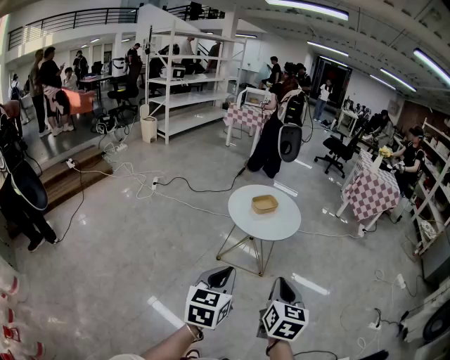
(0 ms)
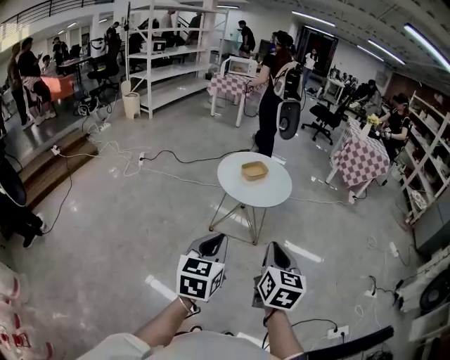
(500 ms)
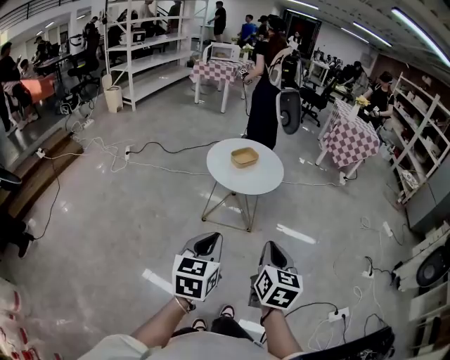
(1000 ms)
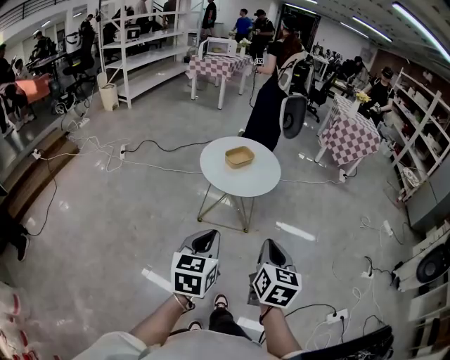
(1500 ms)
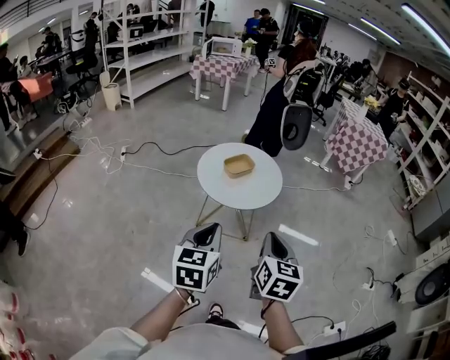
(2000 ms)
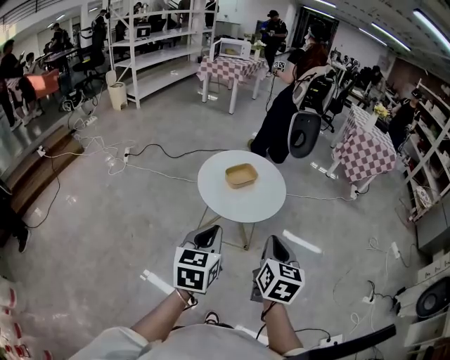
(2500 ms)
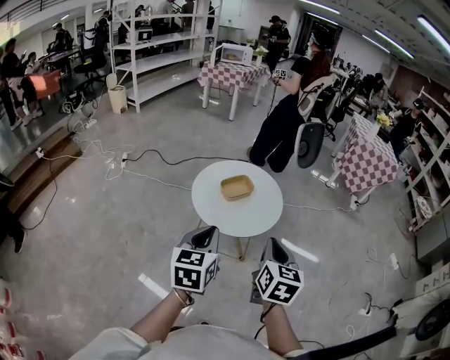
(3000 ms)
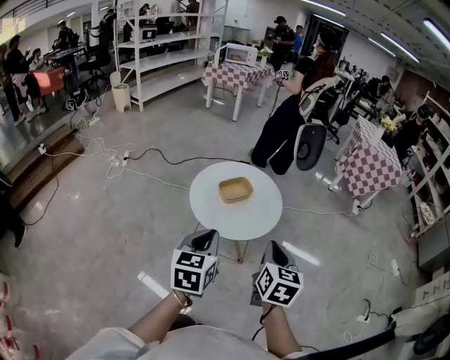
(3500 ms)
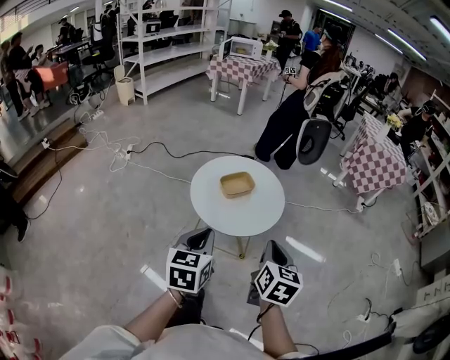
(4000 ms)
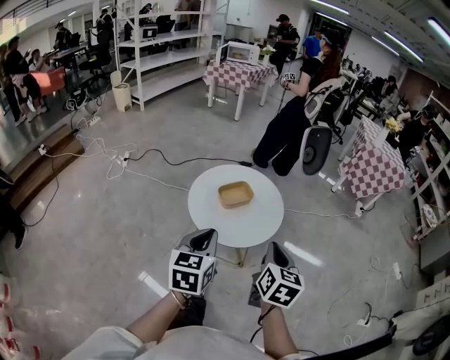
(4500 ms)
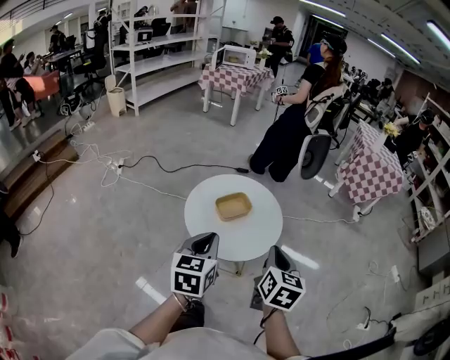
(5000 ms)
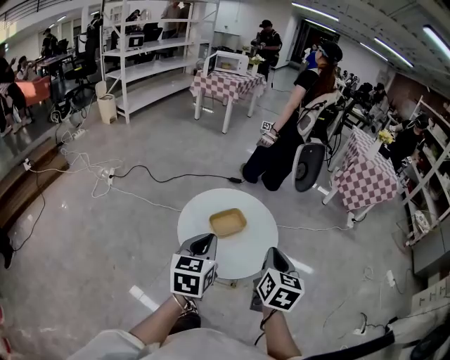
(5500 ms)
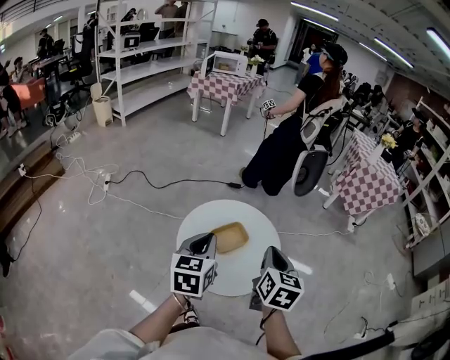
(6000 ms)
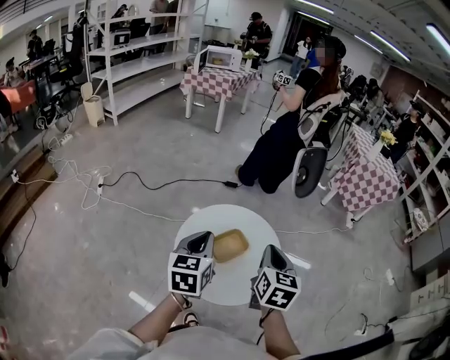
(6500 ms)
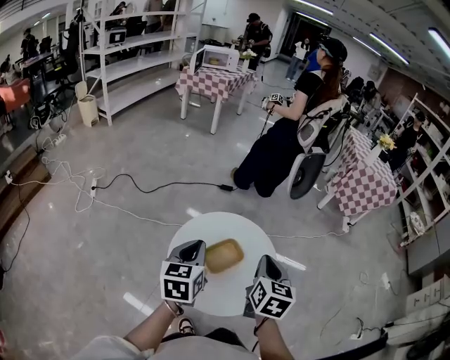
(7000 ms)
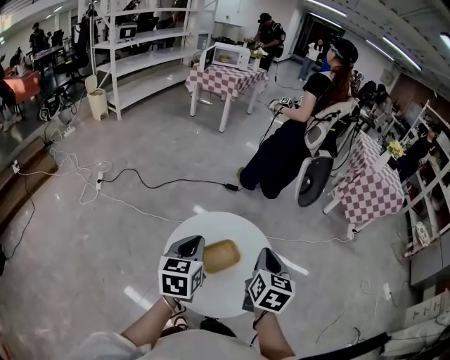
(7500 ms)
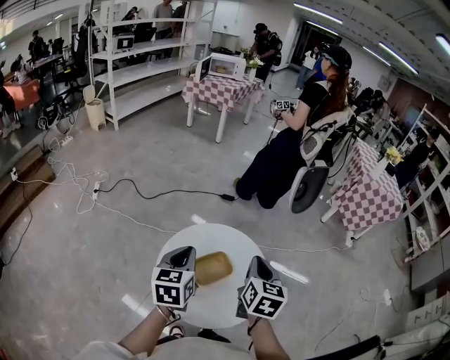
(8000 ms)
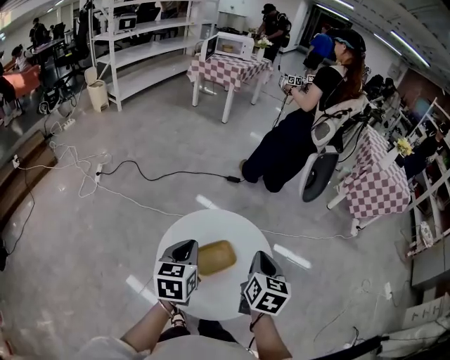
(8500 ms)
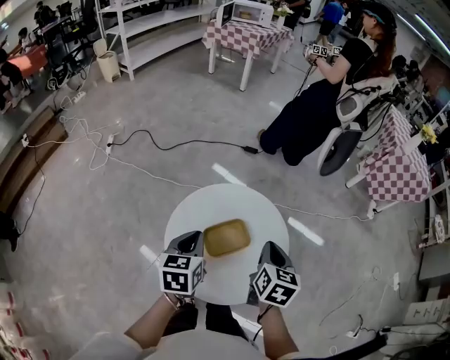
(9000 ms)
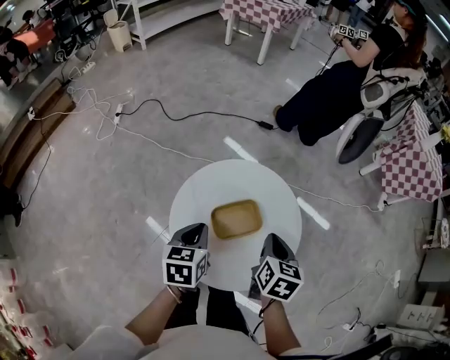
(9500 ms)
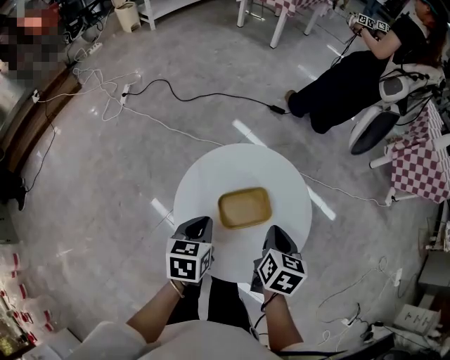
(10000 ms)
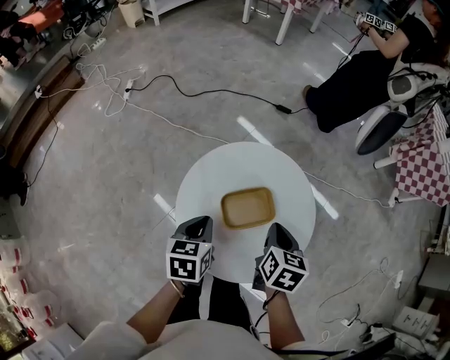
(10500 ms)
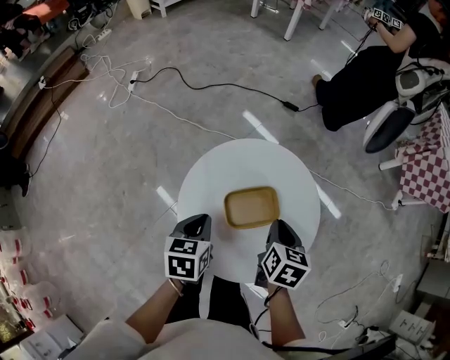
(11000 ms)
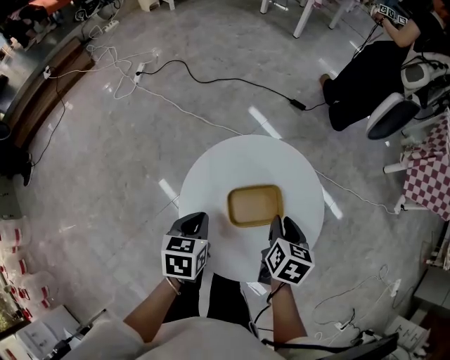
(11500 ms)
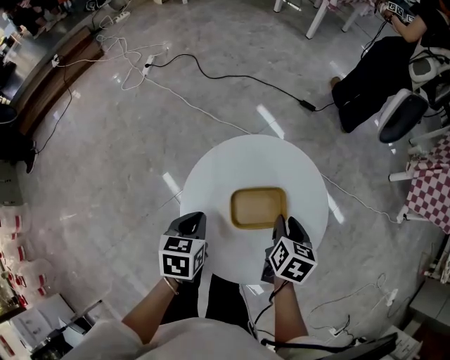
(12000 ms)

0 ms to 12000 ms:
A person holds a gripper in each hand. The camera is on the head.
0 ms to 2000 ms: The grippers both shift forward by roughly 15 cm.
2000 ms to 4000 ms: Both grippers move forward, roughly 15 cm.
4000 ms to 6000 ms: Both grippers travel together forward, about 20 cm.
6000 ms to 8000 ms: The grippers both shift forward by some 10 cm.
8000 ms to 10000 ms: The right gripper moves downward, some 15 cm, and changes its angle by roughly 20 degrees, while the left gripper moves downward and backward, some 20 cm, and turns by some 20 degrees.
10000 ms to 12000 ms: The left gripper changes place by approximately 5 cm; the right gripper is displaced downward by about 5 cm, and opens.

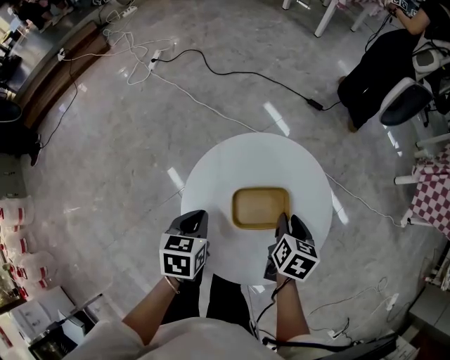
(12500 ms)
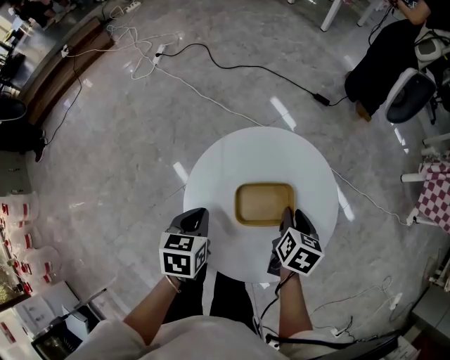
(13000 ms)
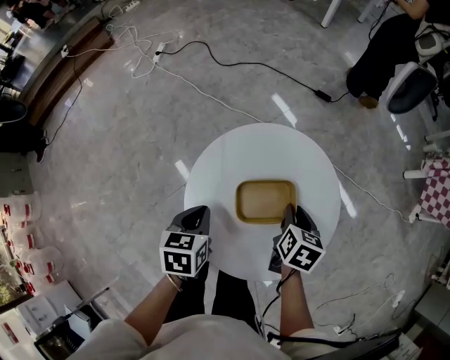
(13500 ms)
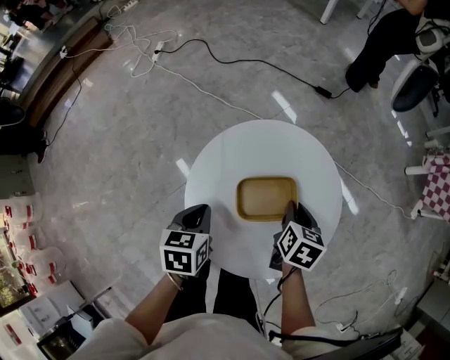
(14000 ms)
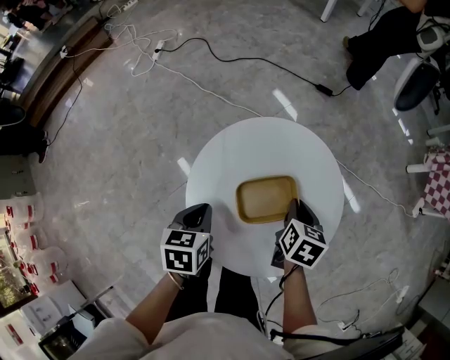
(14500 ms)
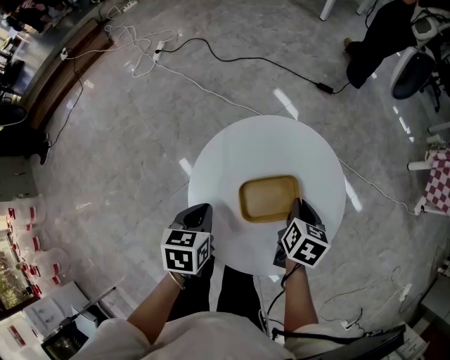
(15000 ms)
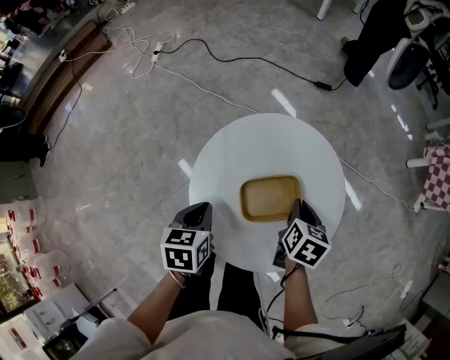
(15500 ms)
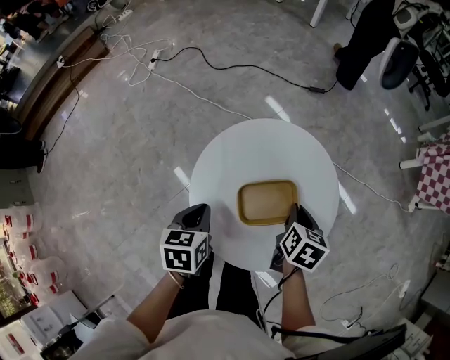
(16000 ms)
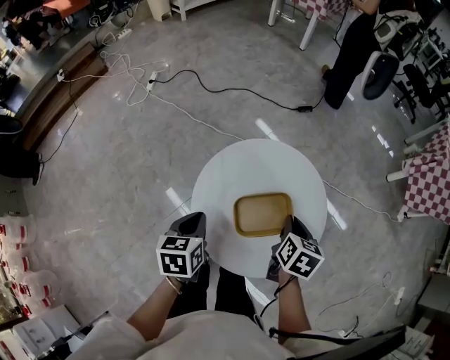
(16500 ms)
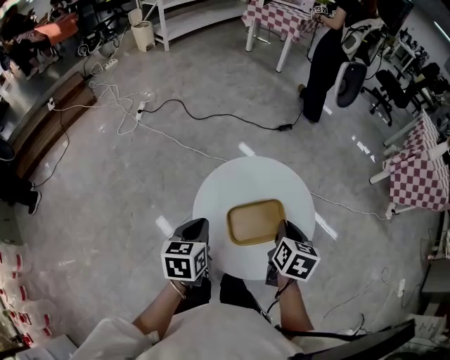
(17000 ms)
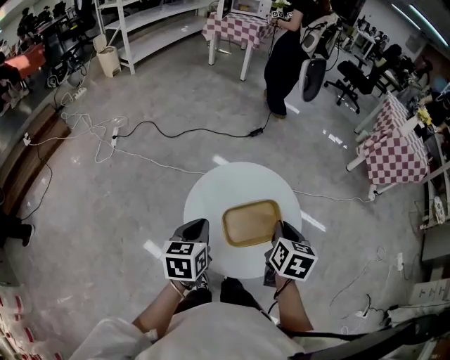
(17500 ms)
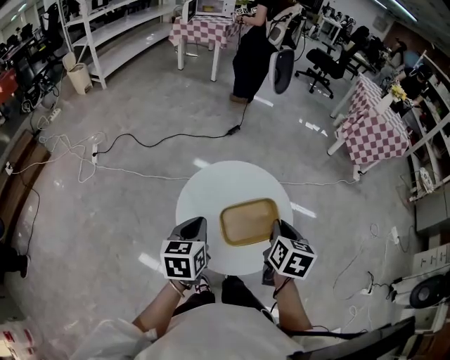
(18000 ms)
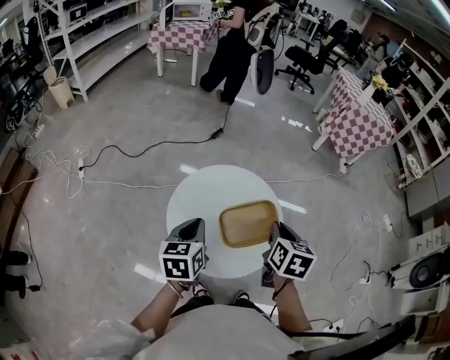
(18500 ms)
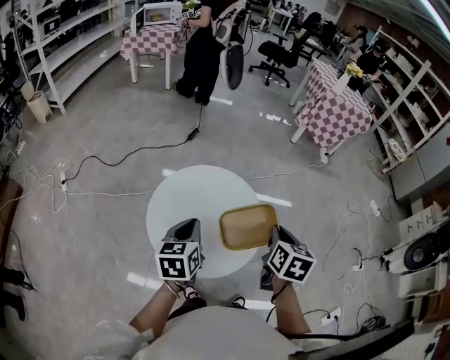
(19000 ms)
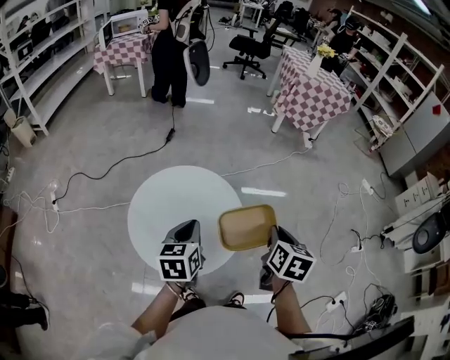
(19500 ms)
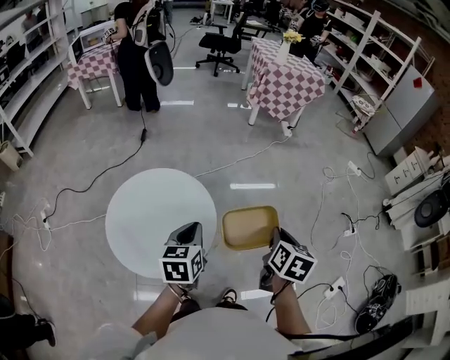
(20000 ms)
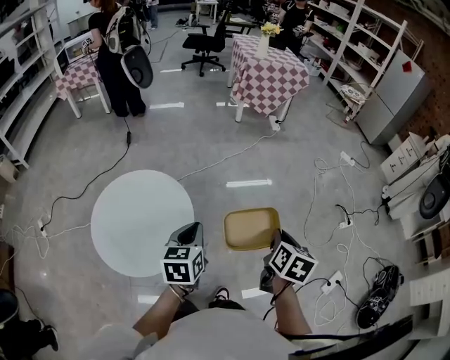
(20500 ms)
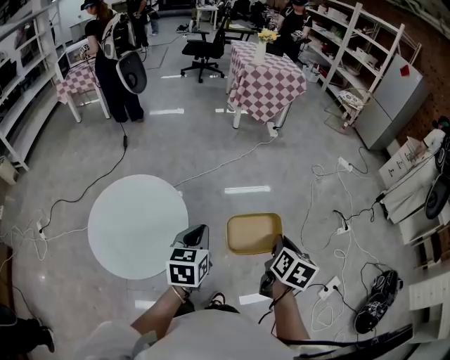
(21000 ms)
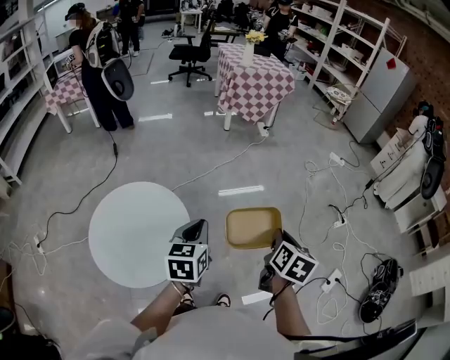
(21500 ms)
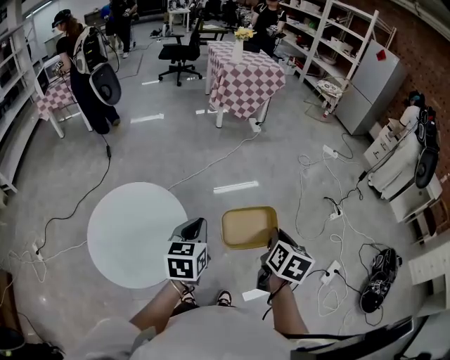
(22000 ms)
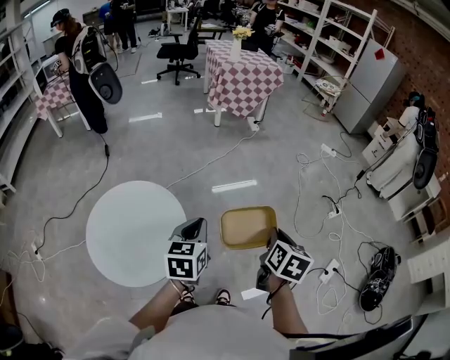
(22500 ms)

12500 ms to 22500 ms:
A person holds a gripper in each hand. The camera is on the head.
12500 ms to 14500 ms: The grippers move only a little.
14500 ms to 16500 ms: The right gripper travels upward by roughly 5 cm. The left gripper moves approximately 5 cm.
16500 ms to 18500 ms: The two grippers go approximately 10 cm upward. The left gripper swivels roughly 30 degrees; the right gripper rotates roughly 30 degrees.
18500 ms to 20500 ms: The two grippers go roughly 35 cm to the right. The right gripper swivels roughly 30 degrees; the left gripper rotates some 20 degrees.
20500 ms to 22500 ms: There are only small adjustments of the grippers.

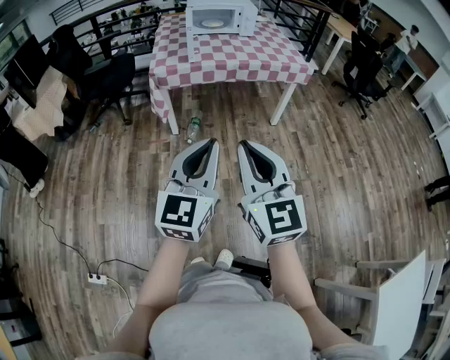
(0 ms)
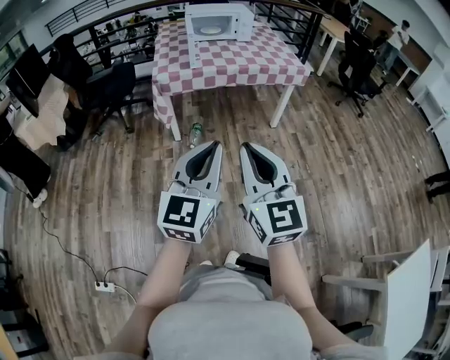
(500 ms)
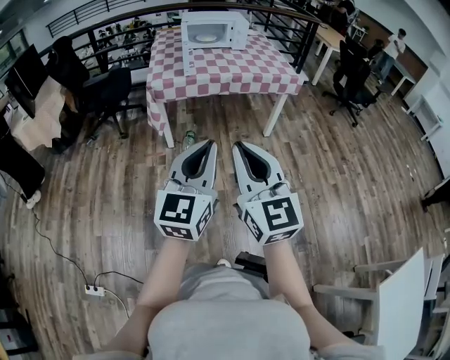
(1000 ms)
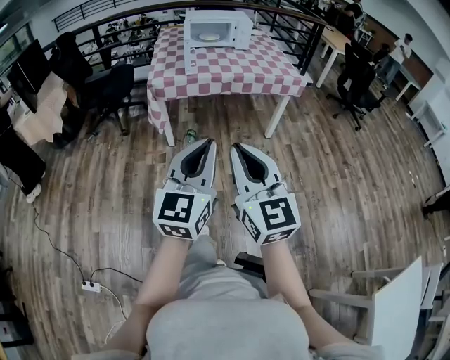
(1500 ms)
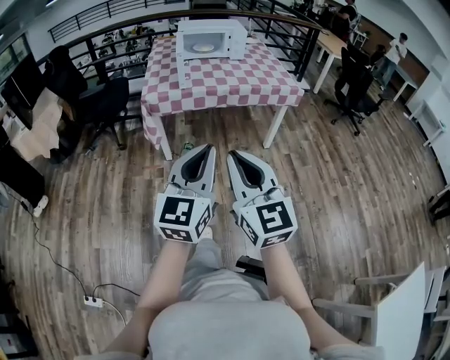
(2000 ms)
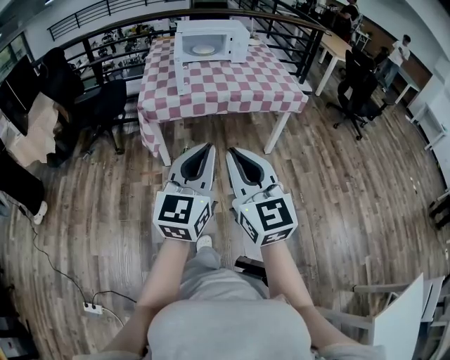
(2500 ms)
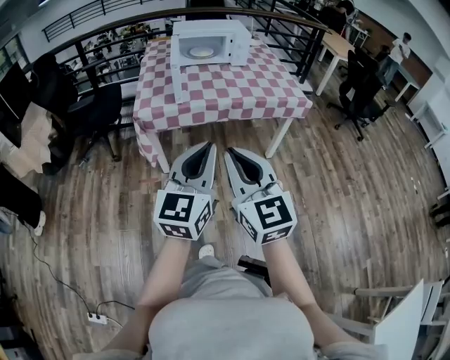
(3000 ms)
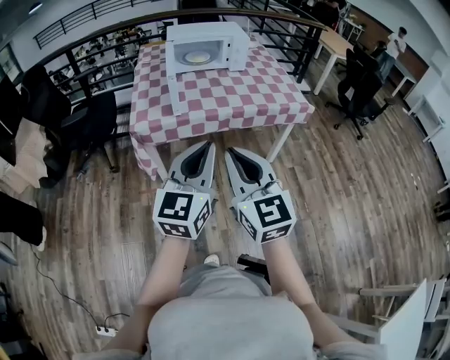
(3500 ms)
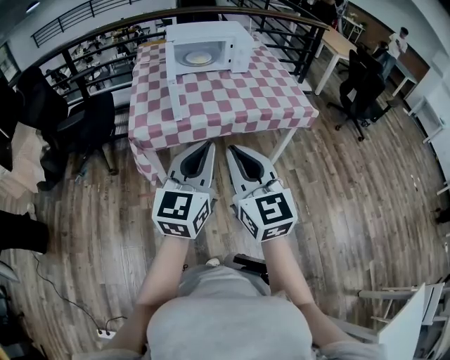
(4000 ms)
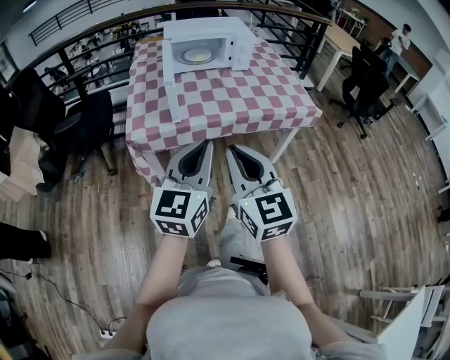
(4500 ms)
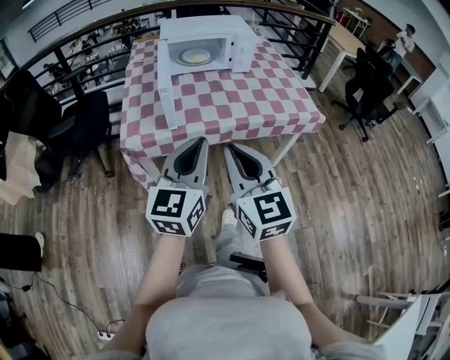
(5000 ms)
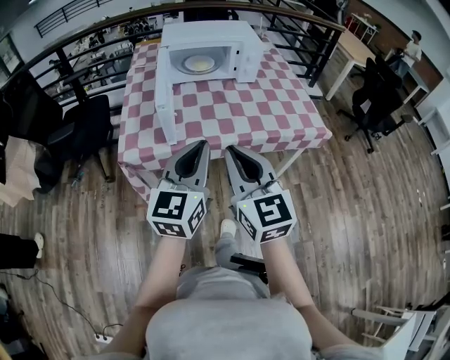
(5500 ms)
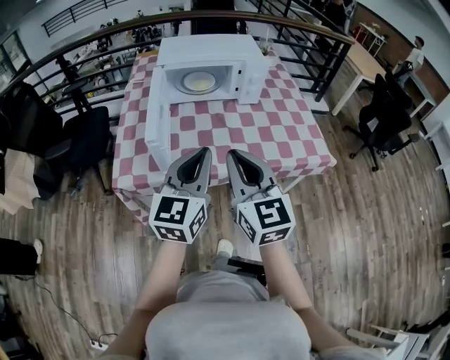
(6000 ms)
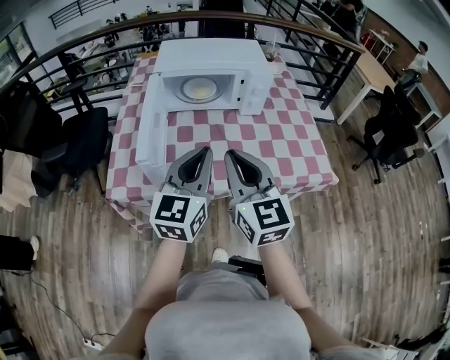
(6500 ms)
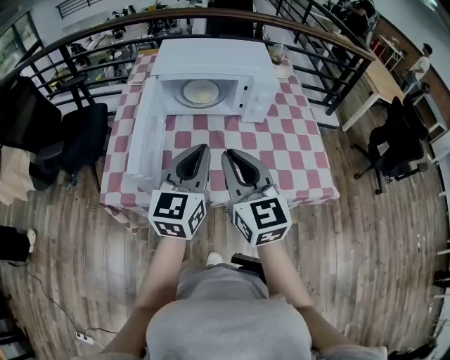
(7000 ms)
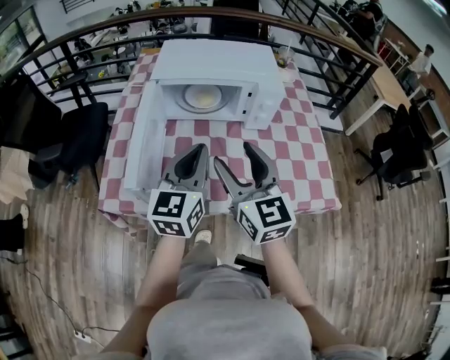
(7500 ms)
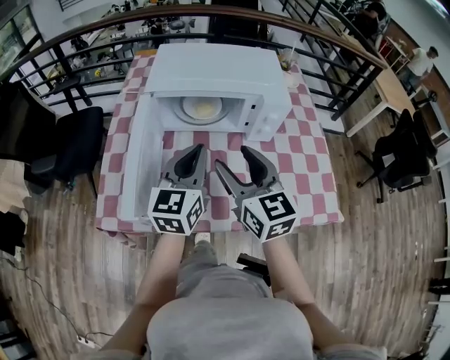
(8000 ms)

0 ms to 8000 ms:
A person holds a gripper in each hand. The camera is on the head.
0 ms to 2000 ms: Both grippers move forward, some 5 cm.
2000 ms to 4000 ms: The grippers both shift forward by approximately 30 cm.
4000 ms to 6000 ms: The grippers both shift forward by some 30 cm.
6000 ms to 8000 ms: Both grippers move forward, about 25 cm. The right gripper opens its fingers.
